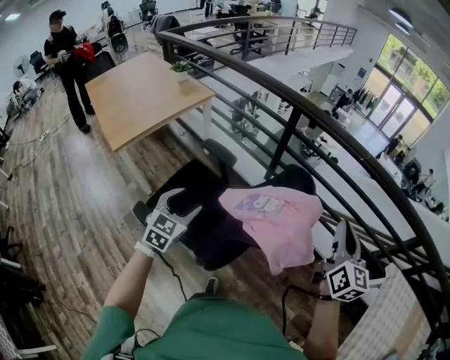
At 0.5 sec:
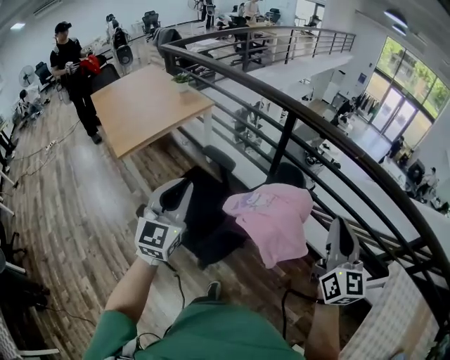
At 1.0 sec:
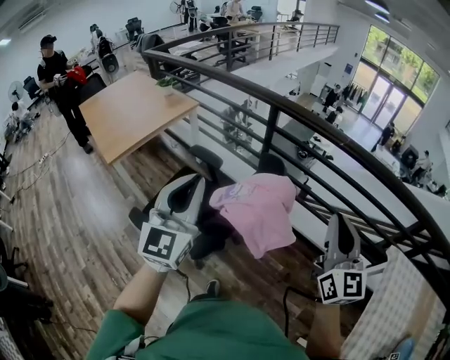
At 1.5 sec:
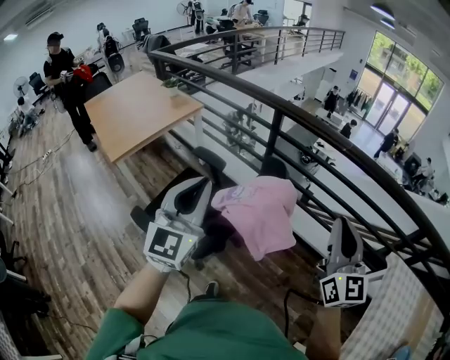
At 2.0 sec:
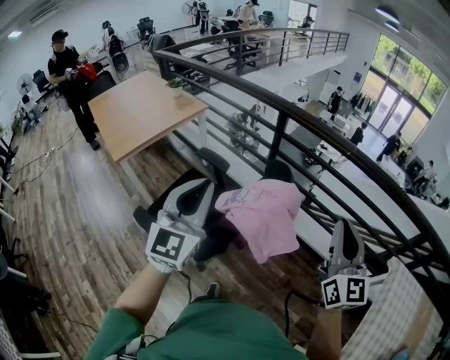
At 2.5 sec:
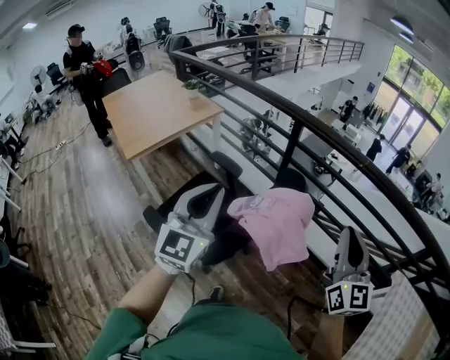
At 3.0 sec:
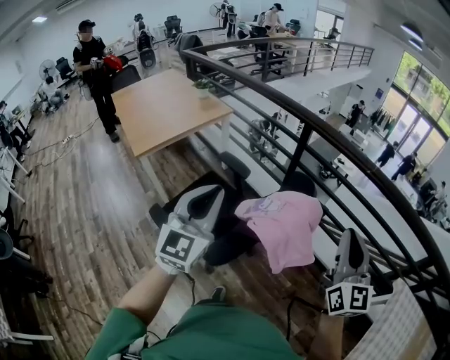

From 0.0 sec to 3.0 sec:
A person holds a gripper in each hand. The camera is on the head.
From 0.0 sec to 1.5 sec: The right gripper goes approximately 10 cm backward and upward. The left gripper shifts some 25 cm upward and to the right, angles its fingers upward, by approximately 30 degrees, and closes.
From 1.5 sec to 3.0 sec: The grippers move only a little.

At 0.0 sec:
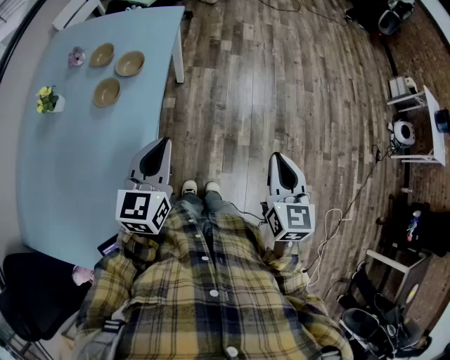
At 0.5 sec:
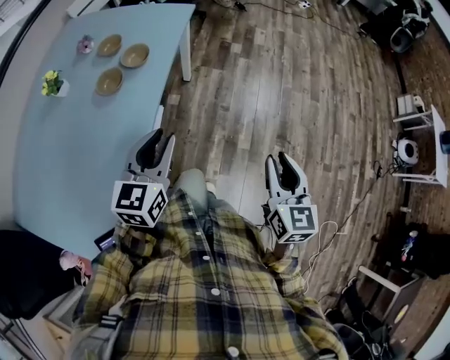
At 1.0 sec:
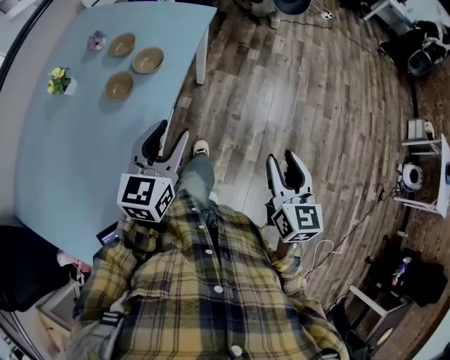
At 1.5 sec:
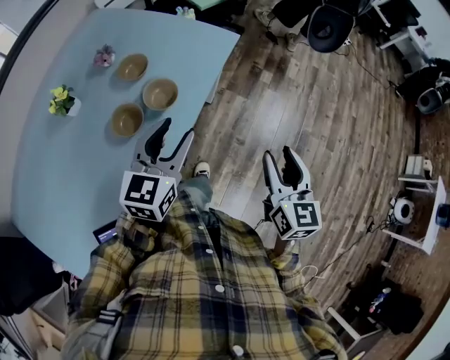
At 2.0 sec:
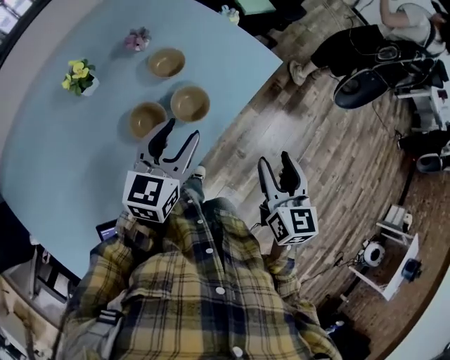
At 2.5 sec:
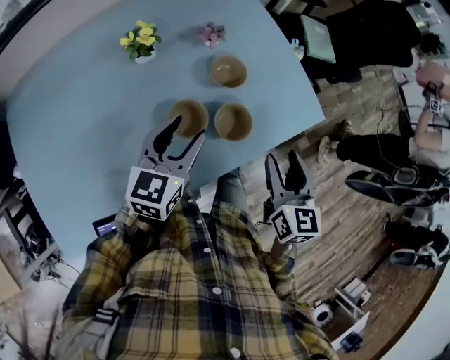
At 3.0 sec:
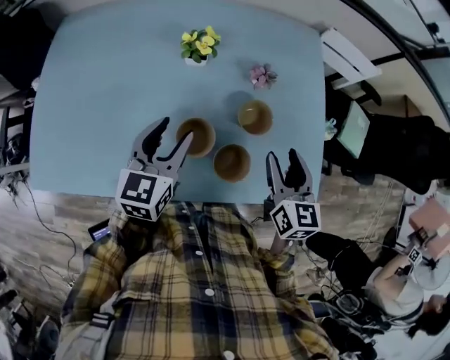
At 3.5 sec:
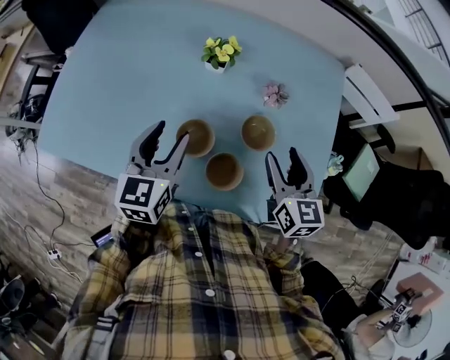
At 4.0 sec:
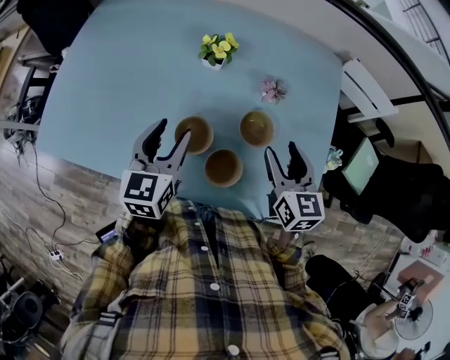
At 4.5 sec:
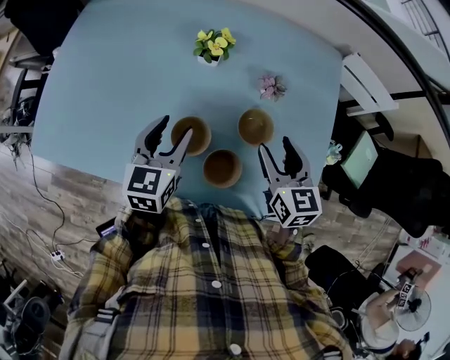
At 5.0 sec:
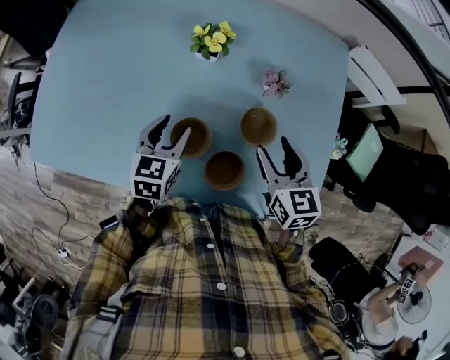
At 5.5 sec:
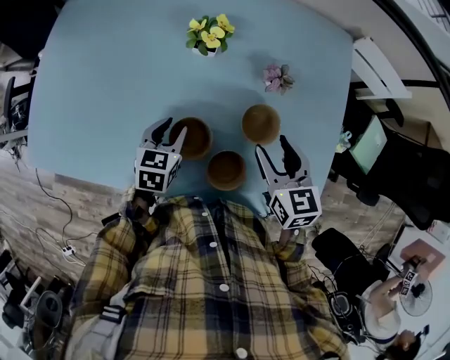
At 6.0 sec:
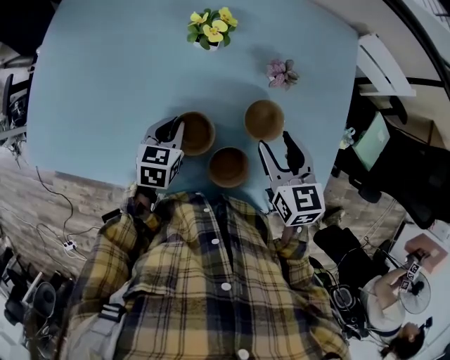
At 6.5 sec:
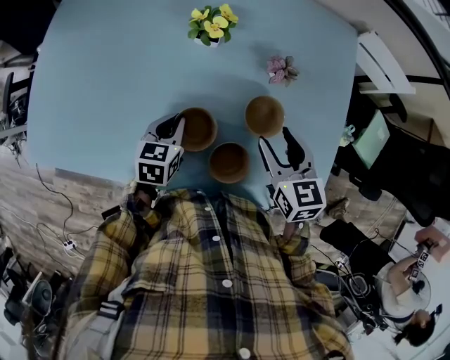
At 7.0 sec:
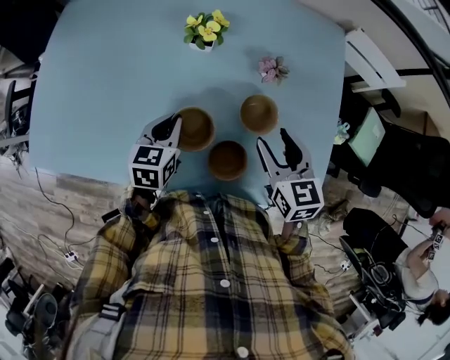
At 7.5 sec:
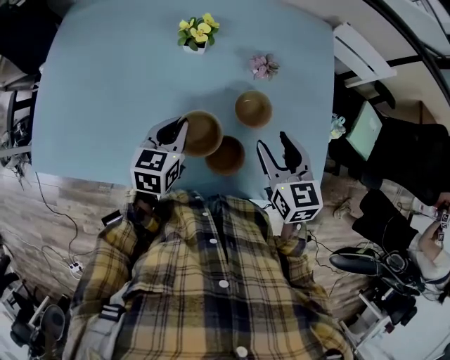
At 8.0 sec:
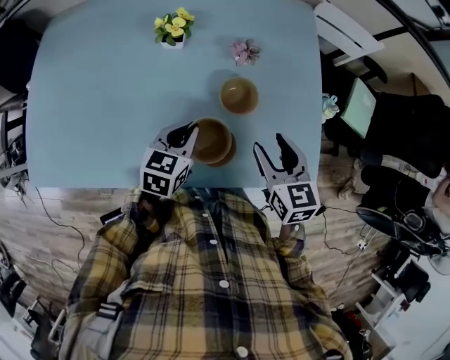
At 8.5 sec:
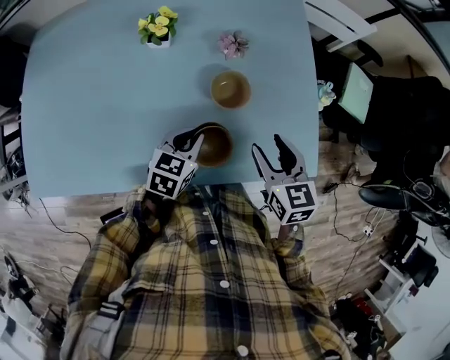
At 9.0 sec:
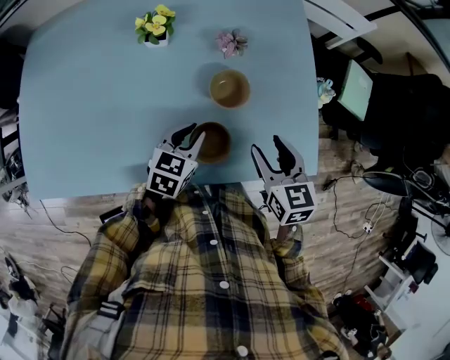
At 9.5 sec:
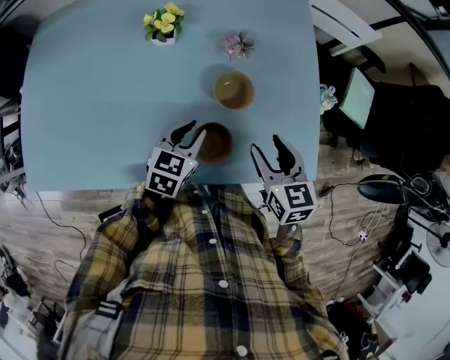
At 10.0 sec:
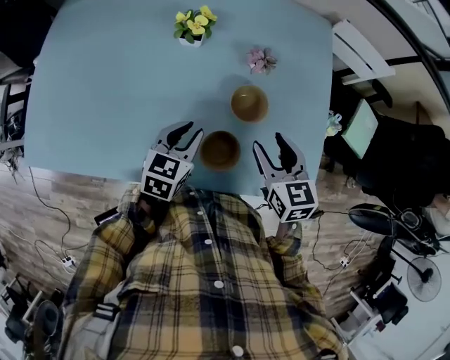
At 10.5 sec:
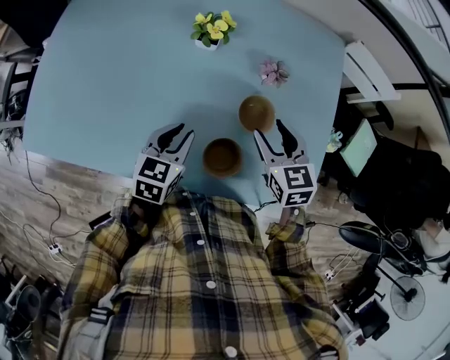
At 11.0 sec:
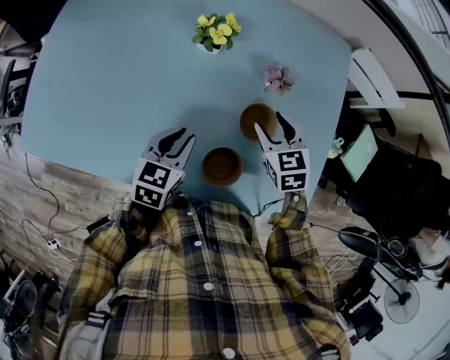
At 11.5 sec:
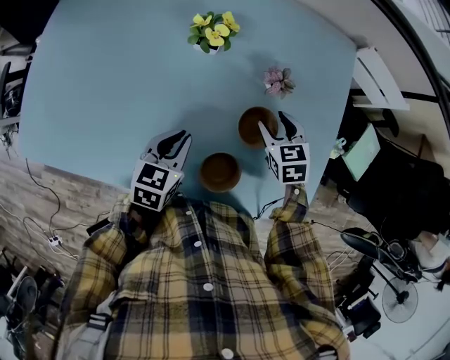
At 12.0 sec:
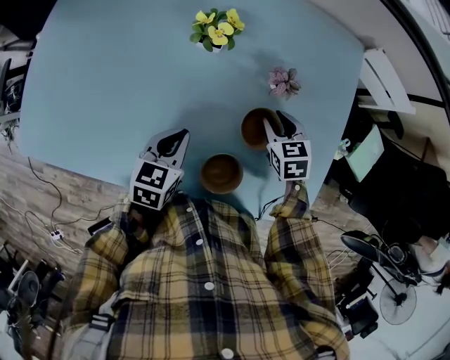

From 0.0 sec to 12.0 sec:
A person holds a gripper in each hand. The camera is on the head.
From 0.0 sec to 2.0 sec: The right gripper changes place by some 40 cm, turns by about 30 degrees, and opens, while the left gripper moves about 30 cm, turns by approximately 20 degrees, and opens up.
From 2.0 sec to 4.0 sec: The right gripper shifts by roughly 35 cm, and changes its angle by roughly 70 degrees; the left gripper moves roughly 15 cm, and swivels some 70 degrees.
From 4.0 sec to 6.0 sec: The left gripper shifts approximately 20 cm downward, changes its angle by approximately 30 degrees, and closes its fingers, while the right gripper is displaced downward by roughly 5 cm.
From 6.0 sec to 8.0 sec: The right gripper goes about 10 cm backward; the left gripper shifts roughly 15 cm to the right, upward and backward, and swivels about 20 degrees.
From 8.0 sec to 10.0 sec: The grippers make only small movements.
From 10.0 sec to 12.0 sec: The left gripper moves roughly 5 cm, and closes its fingers. Meanwhile the right gripper is displaced forward and downward by approximately 20 cm, changes its angle by roughly 20 degrees, and closes its fingers.

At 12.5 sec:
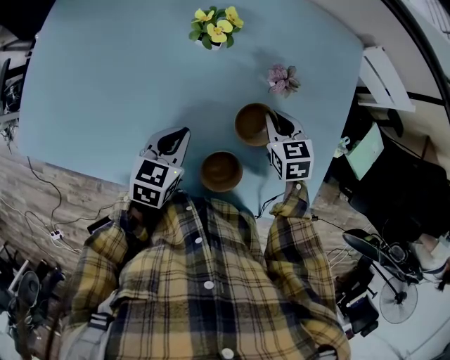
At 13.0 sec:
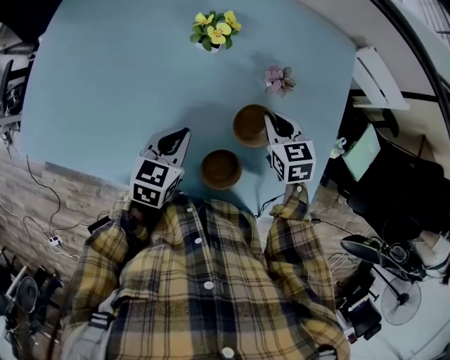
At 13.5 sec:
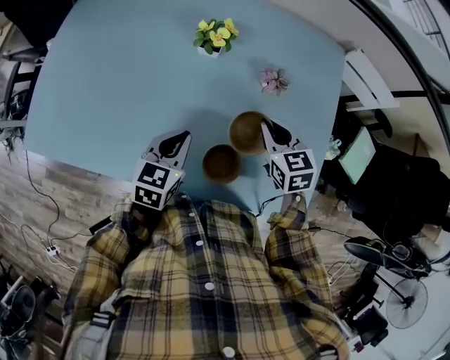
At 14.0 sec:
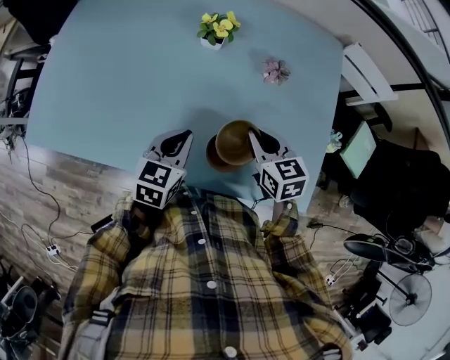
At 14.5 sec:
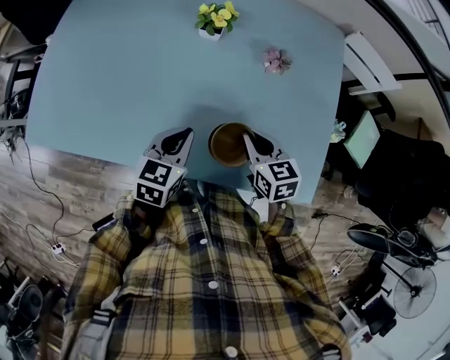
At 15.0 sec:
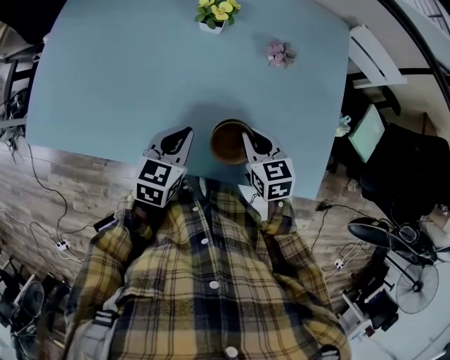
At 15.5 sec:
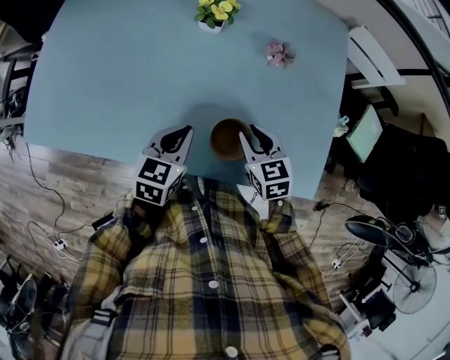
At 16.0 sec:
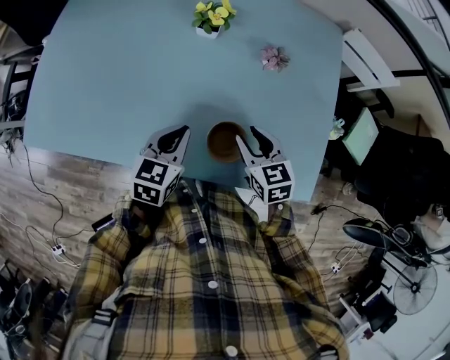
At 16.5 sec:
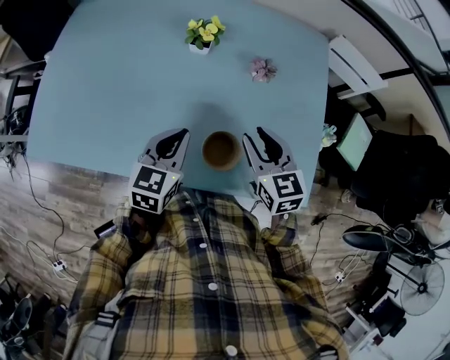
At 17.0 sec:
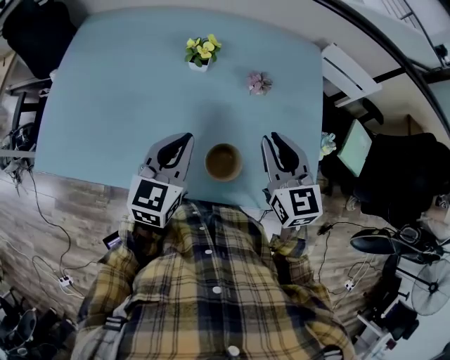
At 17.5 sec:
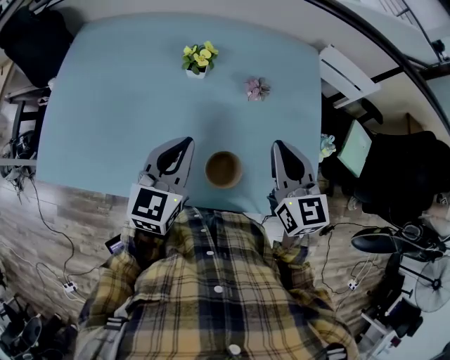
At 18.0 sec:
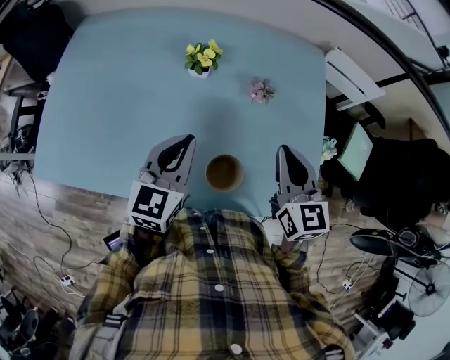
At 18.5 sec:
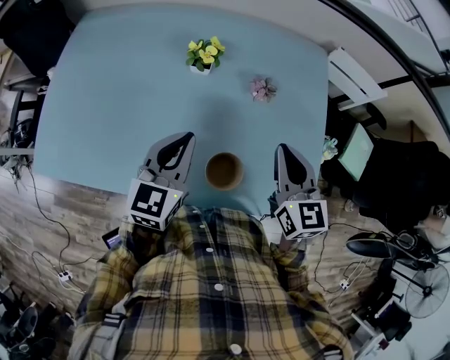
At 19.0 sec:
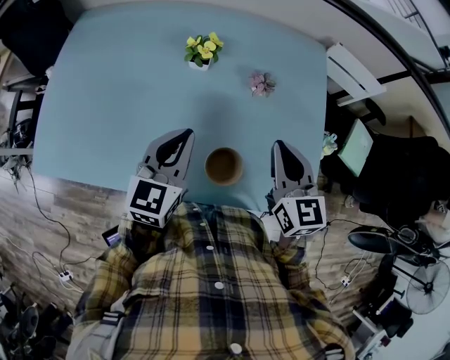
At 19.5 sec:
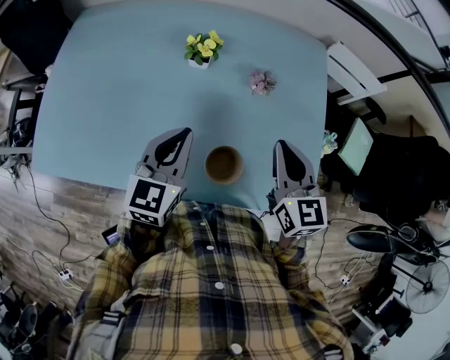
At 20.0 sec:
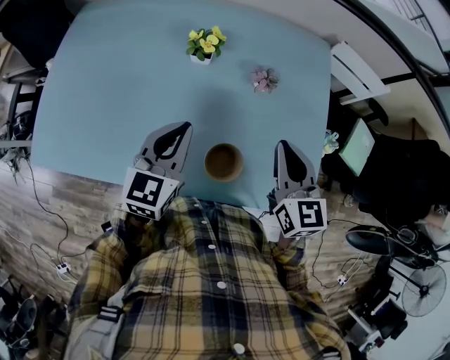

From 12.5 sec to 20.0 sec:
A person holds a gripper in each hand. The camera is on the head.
From 12.5 sec to 14.5 sec: The left gripper moves backward, roughly 10 cm, while the right gripper goes approximately 15 cm backward and to the left.
From 14.5 sec to 16.5 sec: The right gripper goes approximately 10 cm upward, and opens, while the left gripper goes some 5 cm upward.
From 16.5 sec to 18.0 sec: The grippers both shift upward by about 10 cm. The right gripper closes its fingers.
From 18.0 sec to 20.0 sec: The grippers make only small movements.

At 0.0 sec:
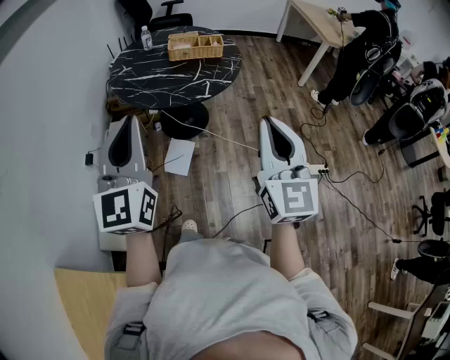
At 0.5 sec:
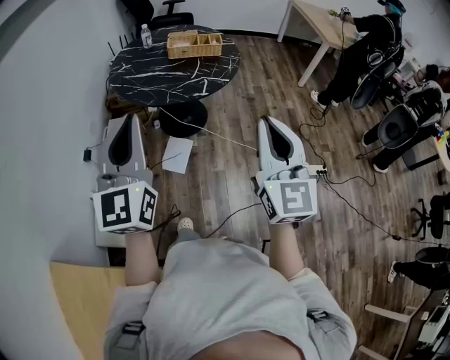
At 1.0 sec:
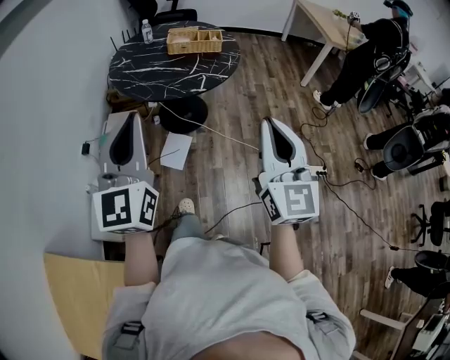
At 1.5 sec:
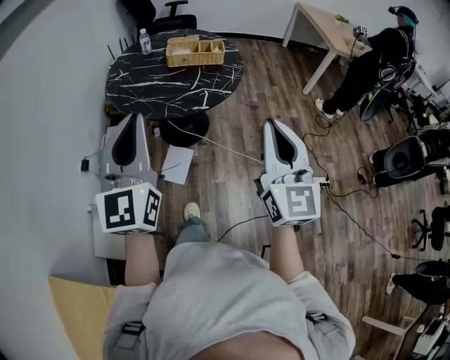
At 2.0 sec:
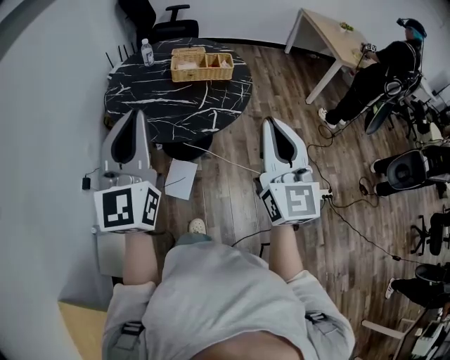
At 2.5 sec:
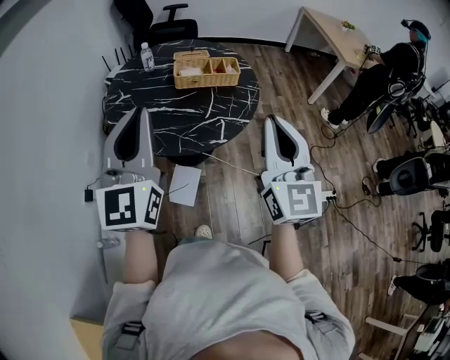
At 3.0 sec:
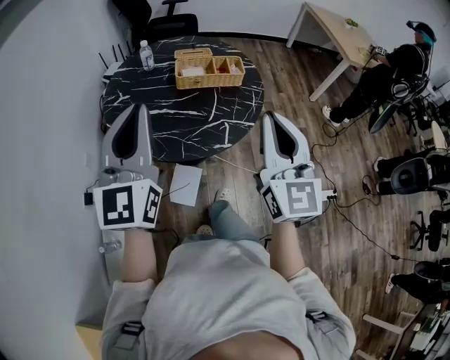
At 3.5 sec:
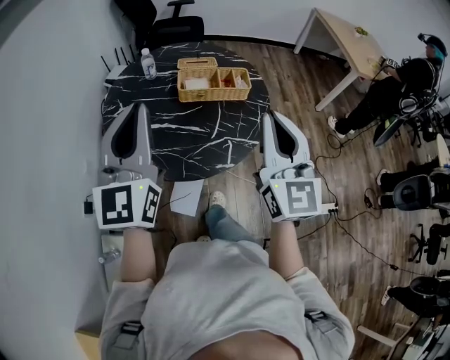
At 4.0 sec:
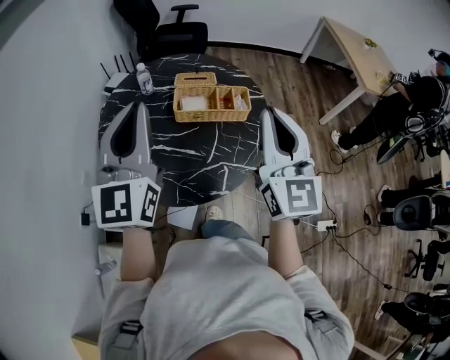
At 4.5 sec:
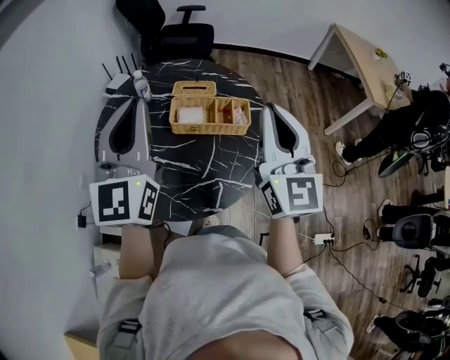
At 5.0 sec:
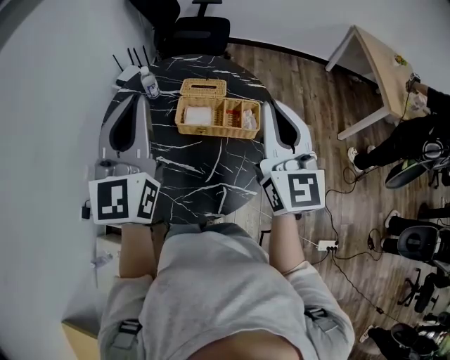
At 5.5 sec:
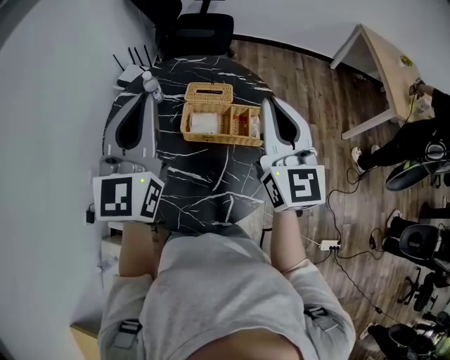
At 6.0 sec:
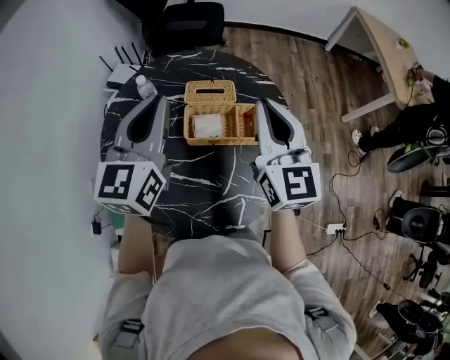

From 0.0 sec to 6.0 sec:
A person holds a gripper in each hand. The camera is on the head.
From 0.0 sec to 2.0 sec: Both grippers travel together forward, approximately 20 cm.
From 2.0 sec to 4.0 sec: Both grippers travel together forward, about 30 cm.
From 4.0 sec to 6.0 sec: The grippers both shift forward by about 20 cm. The left gripper changes its angle by approximately 20 degrees.
